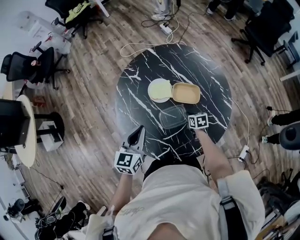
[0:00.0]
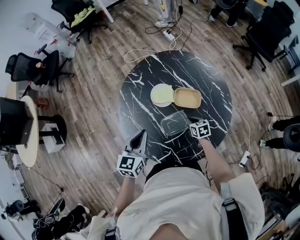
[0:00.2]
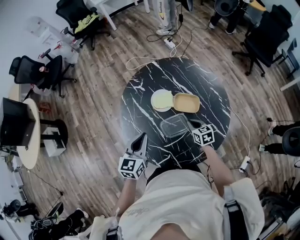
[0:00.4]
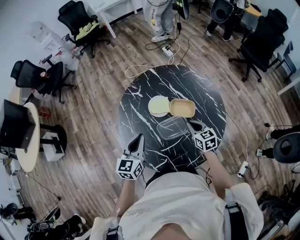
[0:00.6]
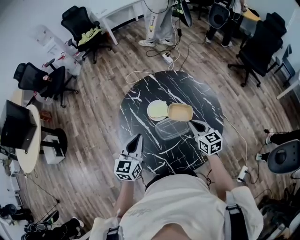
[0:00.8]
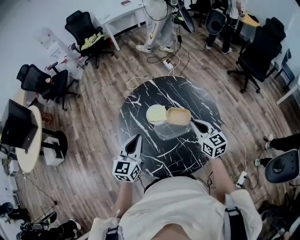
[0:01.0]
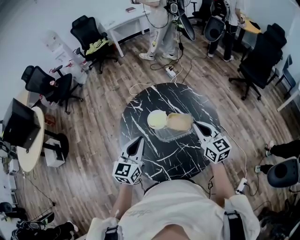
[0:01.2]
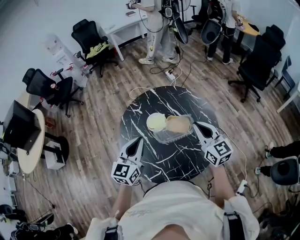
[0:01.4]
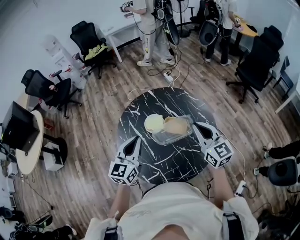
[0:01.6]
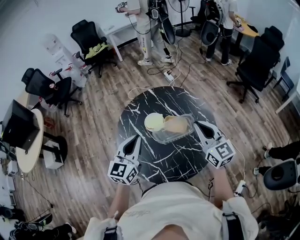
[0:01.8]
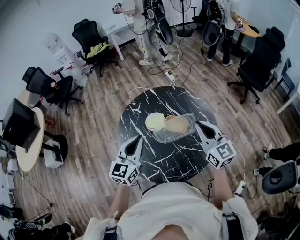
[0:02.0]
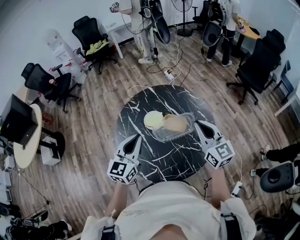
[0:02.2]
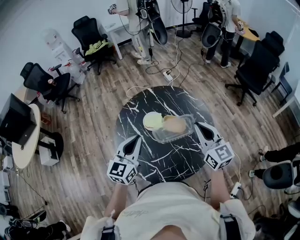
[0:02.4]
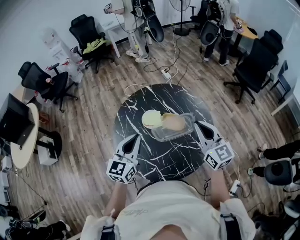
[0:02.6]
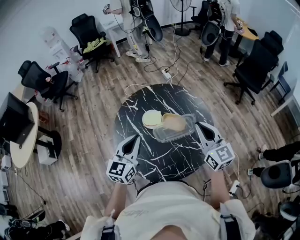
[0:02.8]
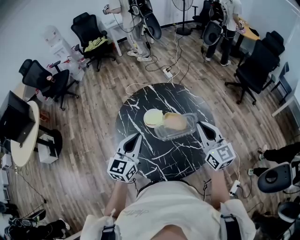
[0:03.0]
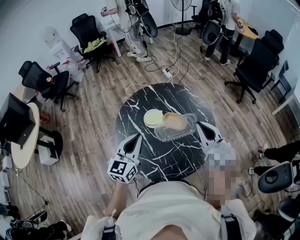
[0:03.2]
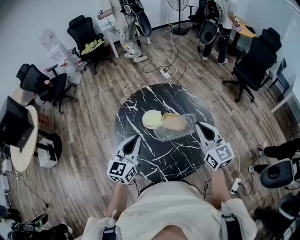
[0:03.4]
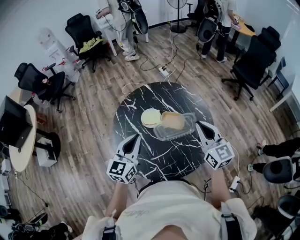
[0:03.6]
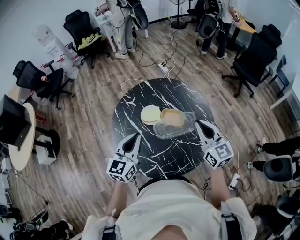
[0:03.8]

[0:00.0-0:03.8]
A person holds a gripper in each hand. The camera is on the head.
0:00.0 to 0:01.2: The left gripper goes some 10 cm upward, while the right gripper heads upward, covering approximately 35 cm, and tips its fingers upward by about 40 degrees.
0:01.2 to 0:02.6: The right gripper heads upward, covering roughly 5 cm.
0:02.6 to 0:03.8: There are only small adjustments of the grippers.

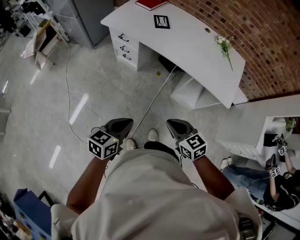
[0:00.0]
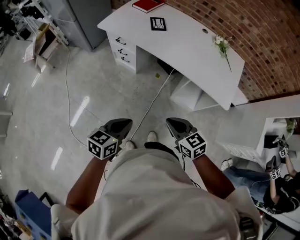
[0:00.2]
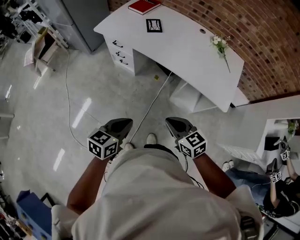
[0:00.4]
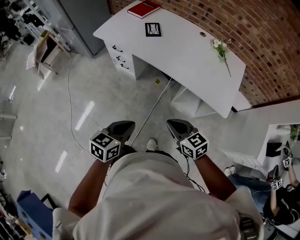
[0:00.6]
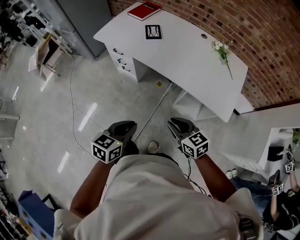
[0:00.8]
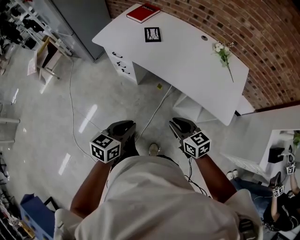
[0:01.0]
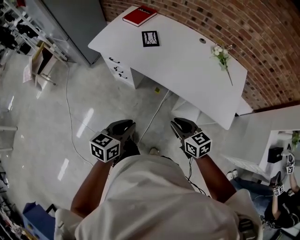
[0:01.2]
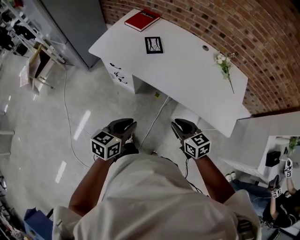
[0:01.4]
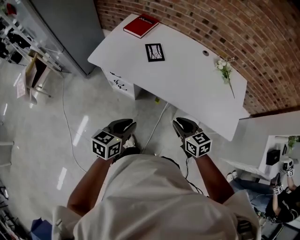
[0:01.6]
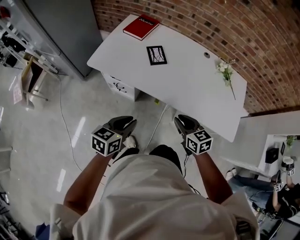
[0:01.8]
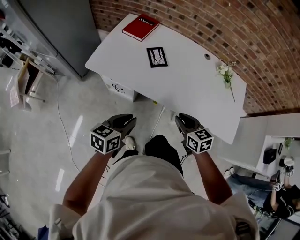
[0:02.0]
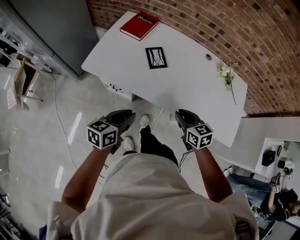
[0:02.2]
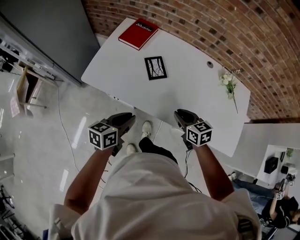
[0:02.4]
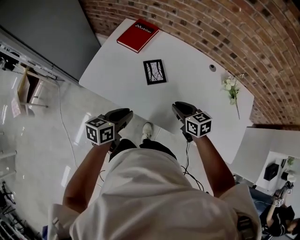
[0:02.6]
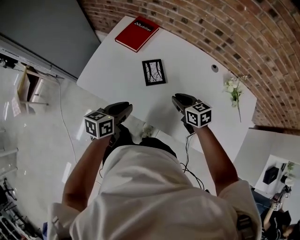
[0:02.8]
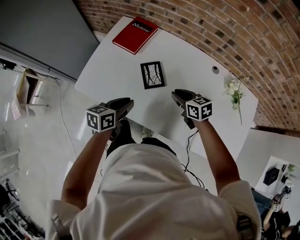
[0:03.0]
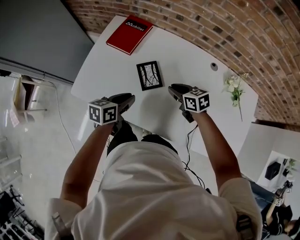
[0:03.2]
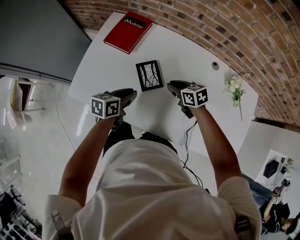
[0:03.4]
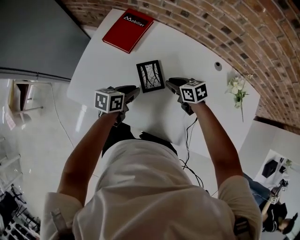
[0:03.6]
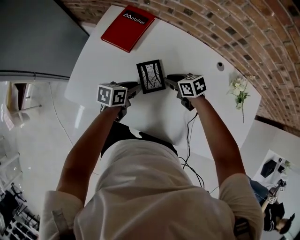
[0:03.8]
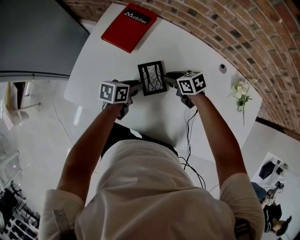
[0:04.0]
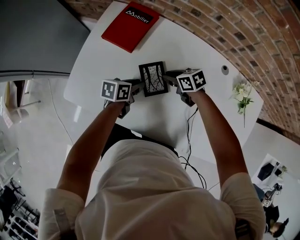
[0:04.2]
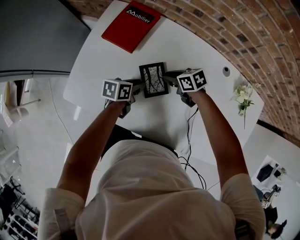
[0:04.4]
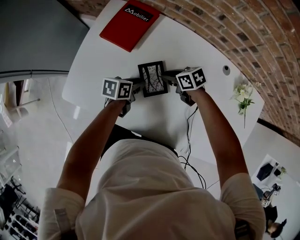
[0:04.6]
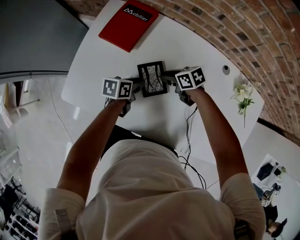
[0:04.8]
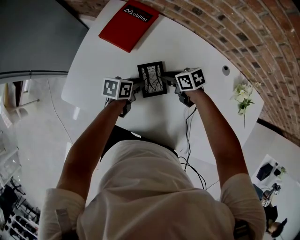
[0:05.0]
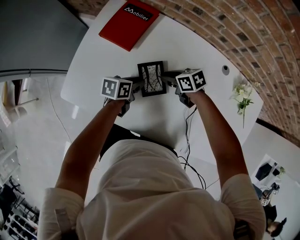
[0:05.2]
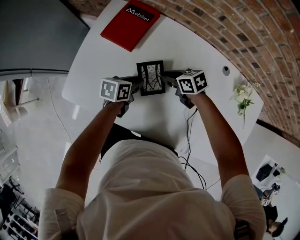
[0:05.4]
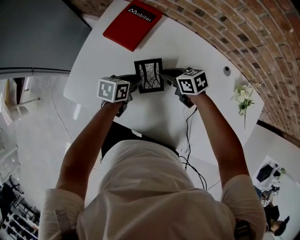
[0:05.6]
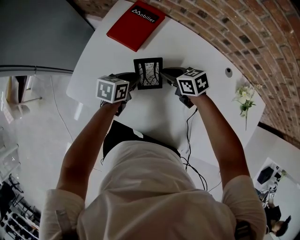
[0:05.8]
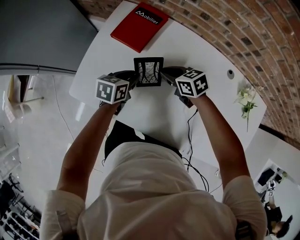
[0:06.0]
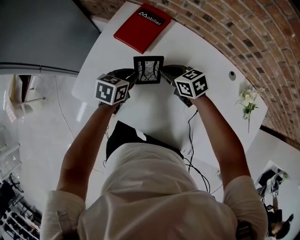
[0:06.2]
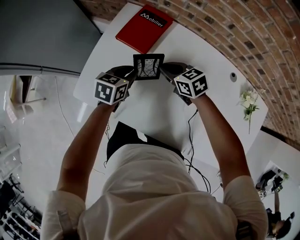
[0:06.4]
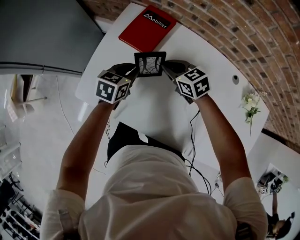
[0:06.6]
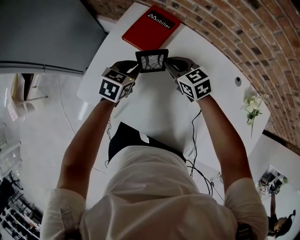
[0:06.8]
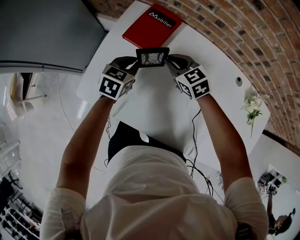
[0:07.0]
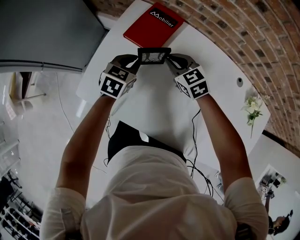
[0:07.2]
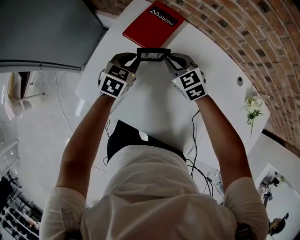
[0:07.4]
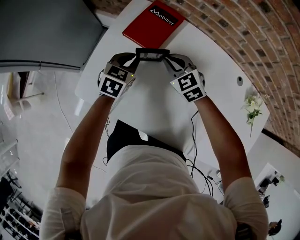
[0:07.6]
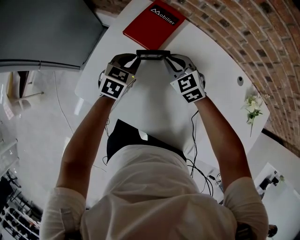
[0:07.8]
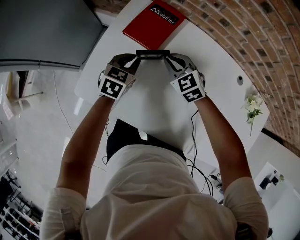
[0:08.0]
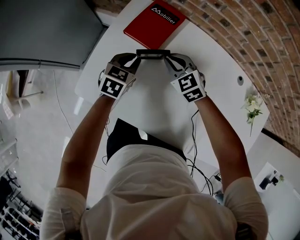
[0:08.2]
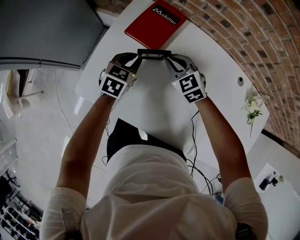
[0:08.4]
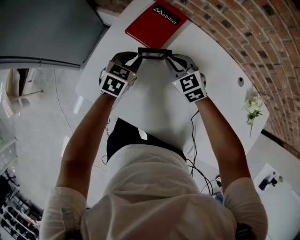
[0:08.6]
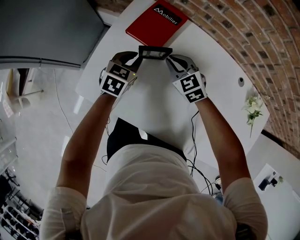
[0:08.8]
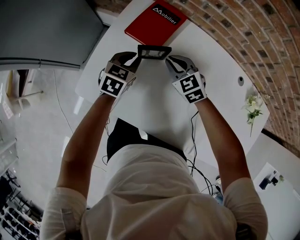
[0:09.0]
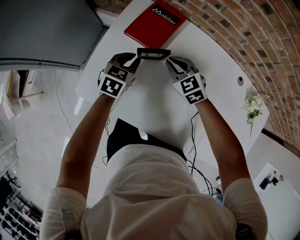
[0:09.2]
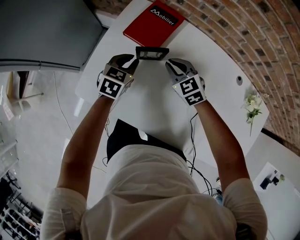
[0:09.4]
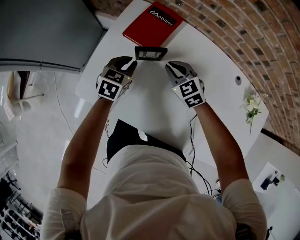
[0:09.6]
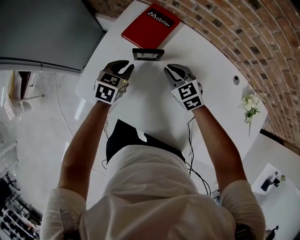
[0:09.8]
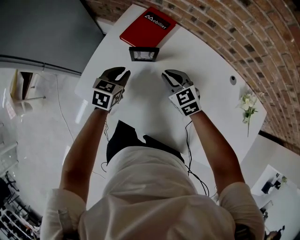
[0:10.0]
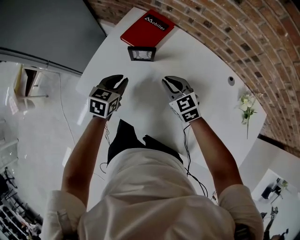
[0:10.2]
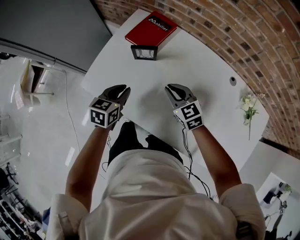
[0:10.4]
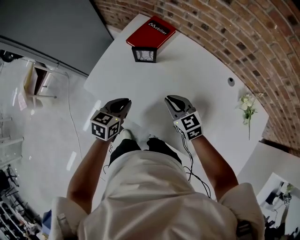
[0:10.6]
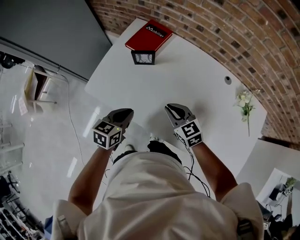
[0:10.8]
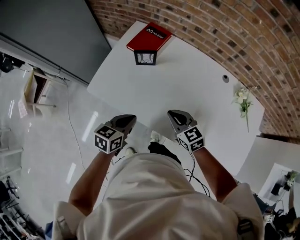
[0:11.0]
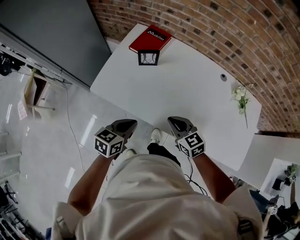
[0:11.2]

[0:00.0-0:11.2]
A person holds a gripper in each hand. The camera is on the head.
0:00.0 to 0:01.6: The grippers both shift forward by about 30 cm.
0:01.6 to 0:03.2: The two grippers go approximately 40 cm forward.
0:03.2 to 0:04.8: The left gripper heads downward, covering roughly 15 cm; the right gripper moves about 15 cm, and rotates approximately 20 degrees.
0:04.8 to 0:06.4: The left gripper shifts by roughly 15 cm, and turns by about 30 degrees; the right gripper travels upward by some 10 cm, and turns by approximately 30 degrees.
0:06.4 to 0:08.0: The left gripper changes place by some 5 cm; the right gripper turns by approximately 30 degrees.
0:08.0 to 0:09.6: The grippers move only a little.
0:09.6 to 0:11.2: The grippers both shift backward by approximately 30 cm. The left gripper rotates roughly 20 degrees, while the right gripper rotates about 20 degrees.

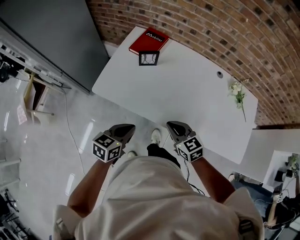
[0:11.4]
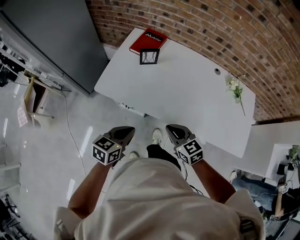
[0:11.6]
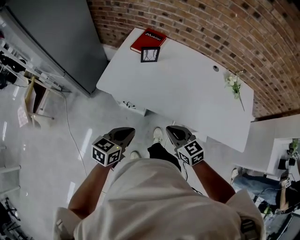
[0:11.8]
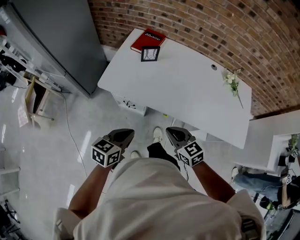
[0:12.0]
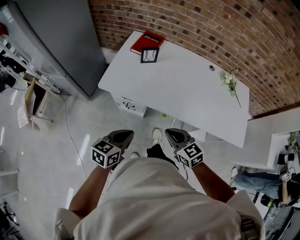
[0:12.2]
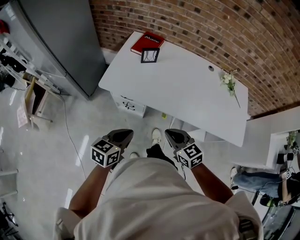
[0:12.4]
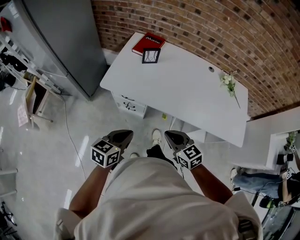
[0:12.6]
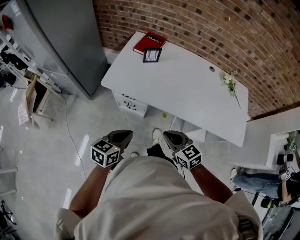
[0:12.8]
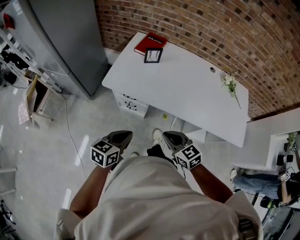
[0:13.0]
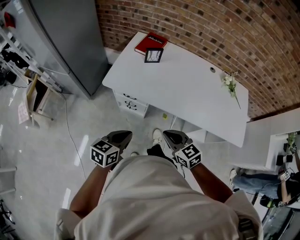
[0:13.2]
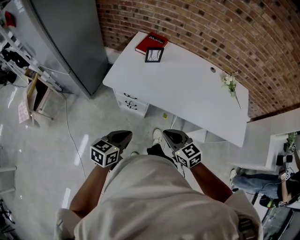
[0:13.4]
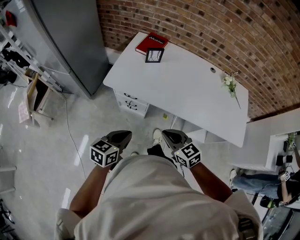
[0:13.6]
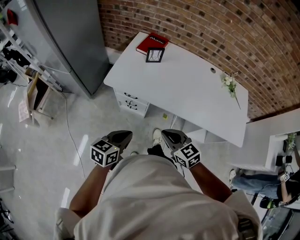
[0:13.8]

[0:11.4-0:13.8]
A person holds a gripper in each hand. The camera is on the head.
0:11.4 to 0:12.6: The right gripper is displaced backward by approximately 15 cm, while the left gripper heads backward and to the left, covering about 15 cm.
0:12.6 to 0:13.8: The grippers make only small movements.

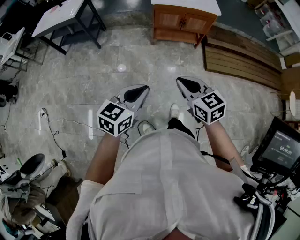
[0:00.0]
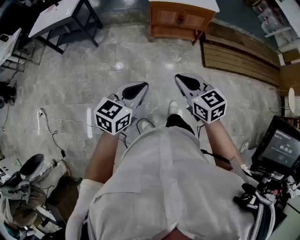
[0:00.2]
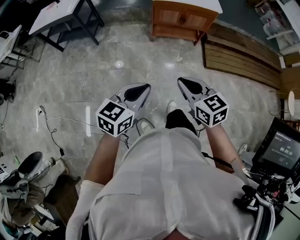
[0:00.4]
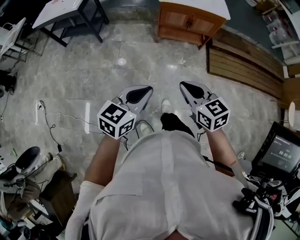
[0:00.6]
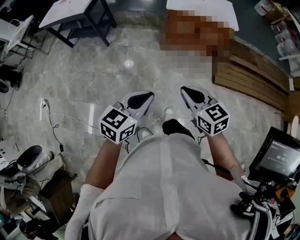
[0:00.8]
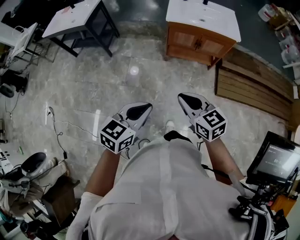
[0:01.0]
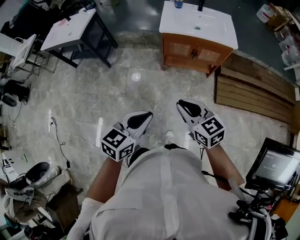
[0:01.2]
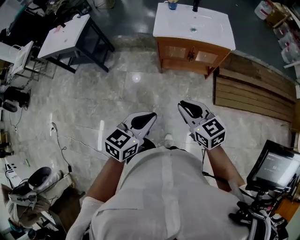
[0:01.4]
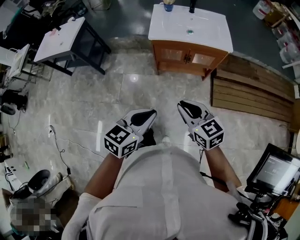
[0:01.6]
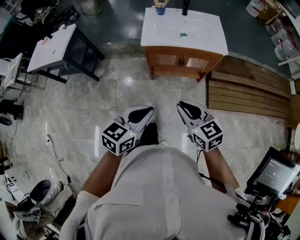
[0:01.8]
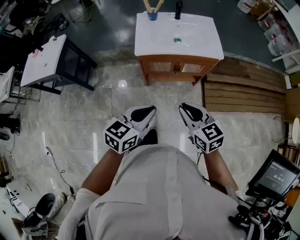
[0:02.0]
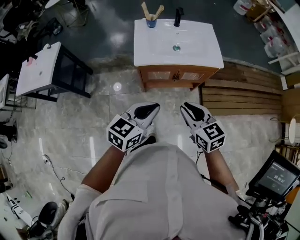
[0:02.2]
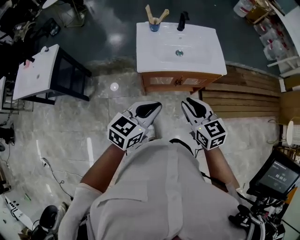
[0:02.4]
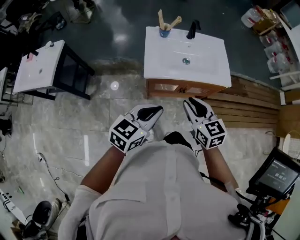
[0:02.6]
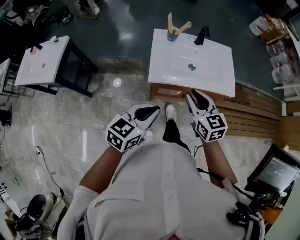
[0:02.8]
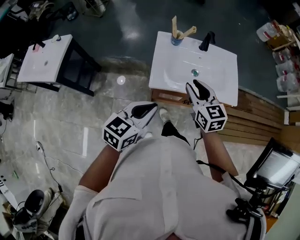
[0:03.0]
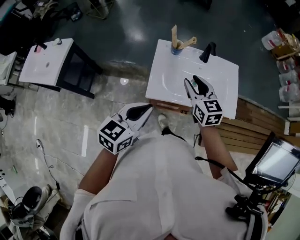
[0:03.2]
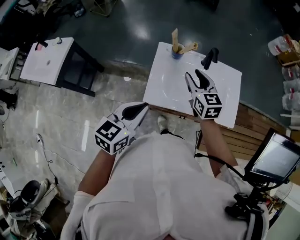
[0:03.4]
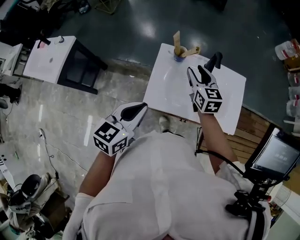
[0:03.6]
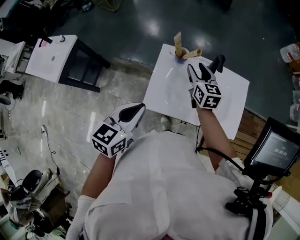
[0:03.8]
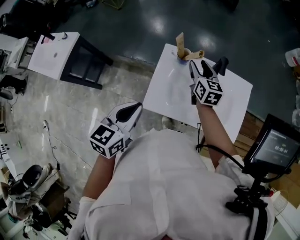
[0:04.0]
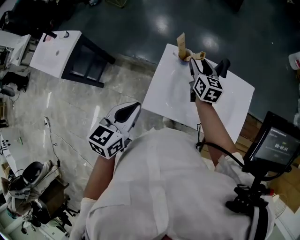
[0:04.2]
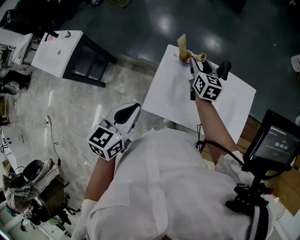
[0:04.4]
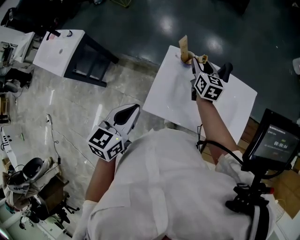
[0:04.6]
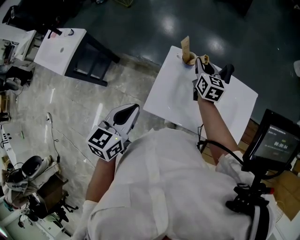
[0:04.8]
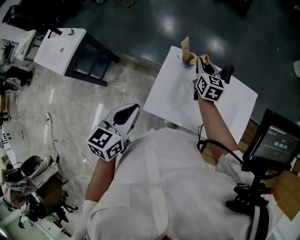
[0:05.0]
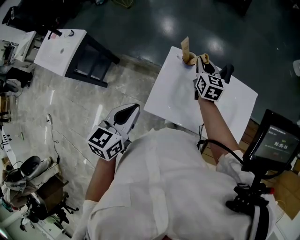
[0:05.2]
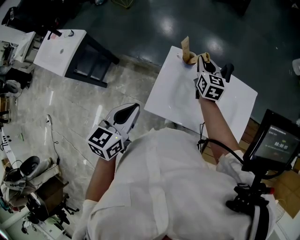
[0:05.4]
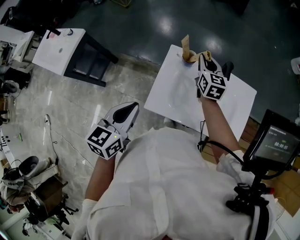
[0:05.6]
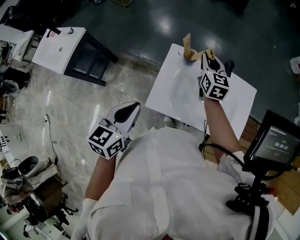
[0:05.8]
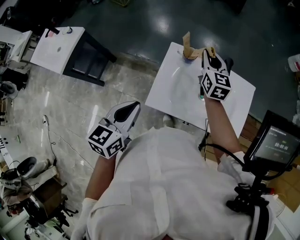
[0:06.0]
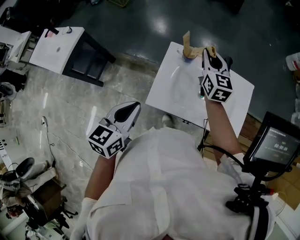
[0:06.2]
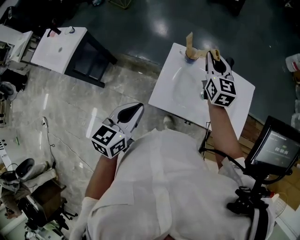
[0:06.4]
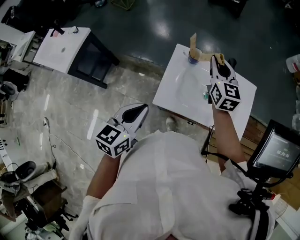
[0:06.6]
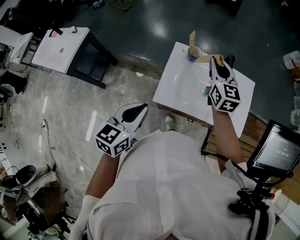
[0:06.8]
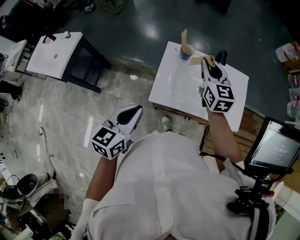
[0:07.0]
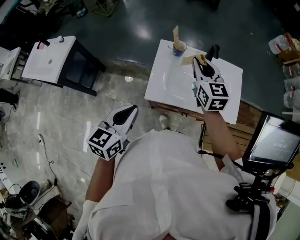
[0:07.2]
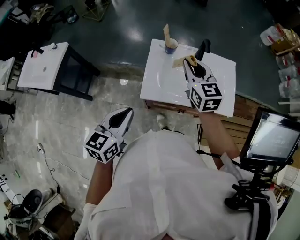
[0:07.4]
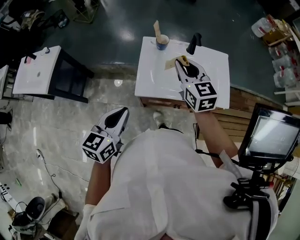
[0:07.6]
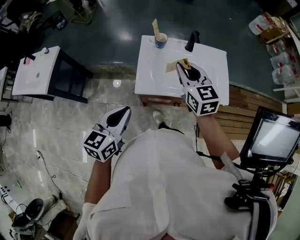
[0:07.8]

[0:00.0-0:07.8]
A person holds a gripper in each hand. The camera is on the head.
0:00.0 to 0:01.6: Both grippers travel together forward, about 30 cm.
0:01.6 to 0:03.2: Both grippers are carried forward, some 50 cm. The right gripper opens up.
0:03.2 to 0:04.6: The right gripper goes roughly 20 cm forward. Meanwhile the left gripper moves forward, about 5 cm, and changes its angle by some 20 degrees.
0:04.6 to 0:06.2: The right gripper travels upward by roughly 10 cm, and closes its fingers.
0:06.2 to 0:07.8: The left gripper goes roughly 10 cm backward. Meanwhile the right gripper travels backward by some 25 cm.
